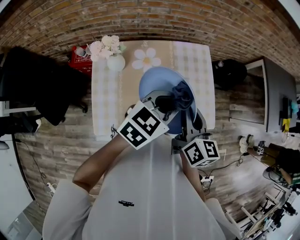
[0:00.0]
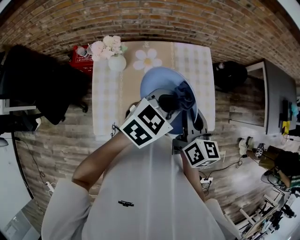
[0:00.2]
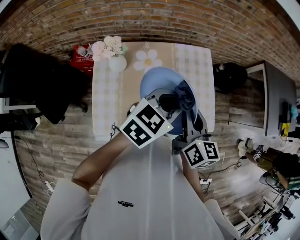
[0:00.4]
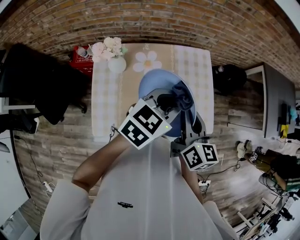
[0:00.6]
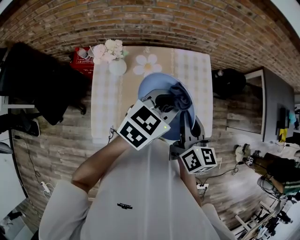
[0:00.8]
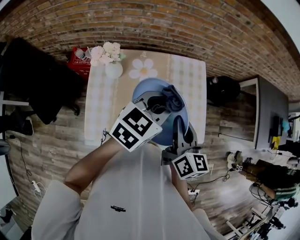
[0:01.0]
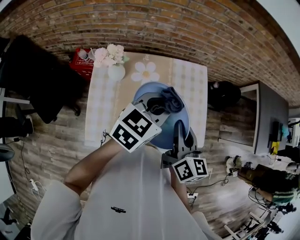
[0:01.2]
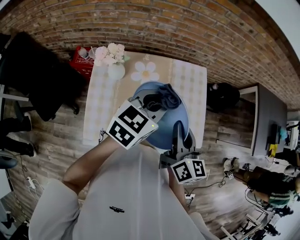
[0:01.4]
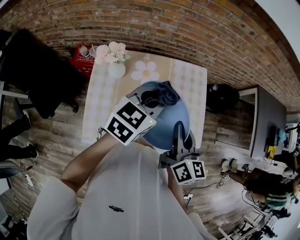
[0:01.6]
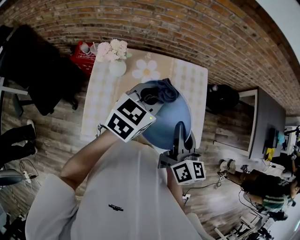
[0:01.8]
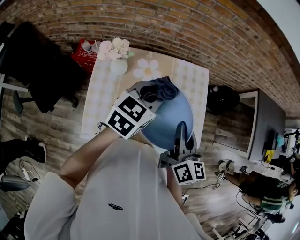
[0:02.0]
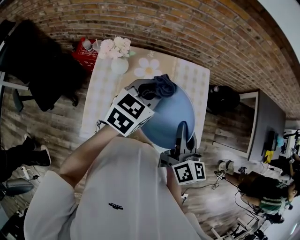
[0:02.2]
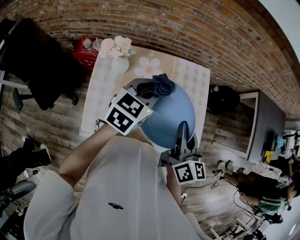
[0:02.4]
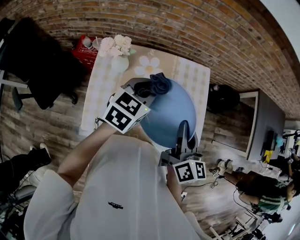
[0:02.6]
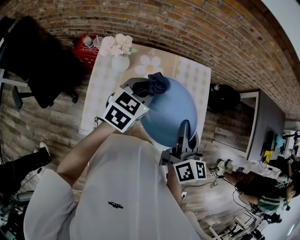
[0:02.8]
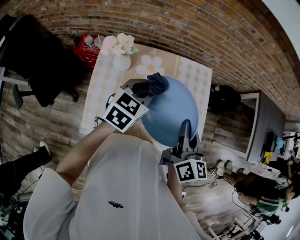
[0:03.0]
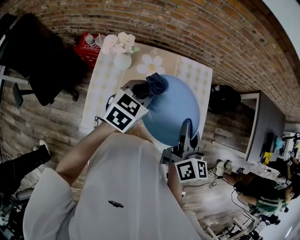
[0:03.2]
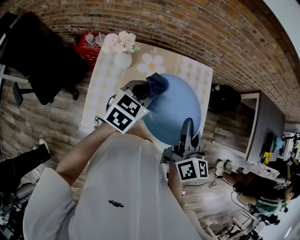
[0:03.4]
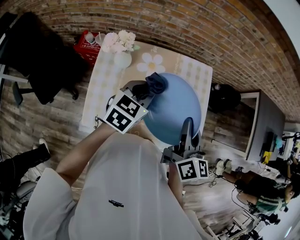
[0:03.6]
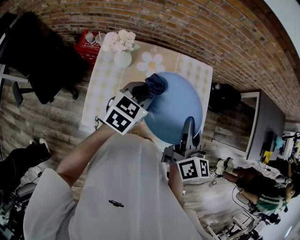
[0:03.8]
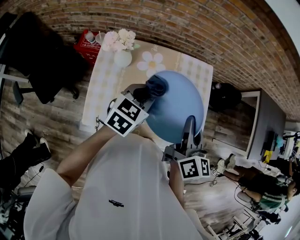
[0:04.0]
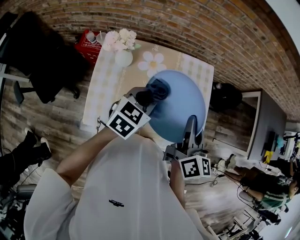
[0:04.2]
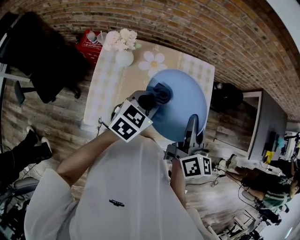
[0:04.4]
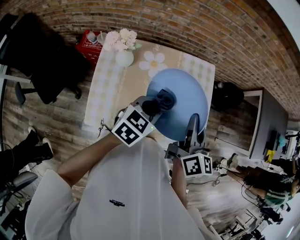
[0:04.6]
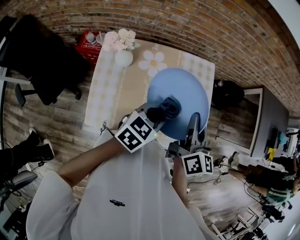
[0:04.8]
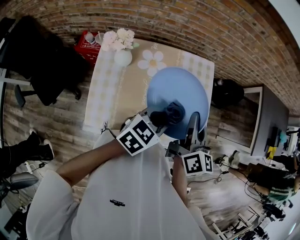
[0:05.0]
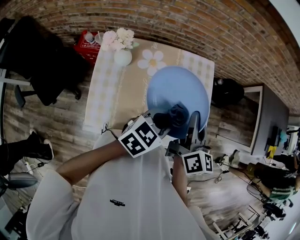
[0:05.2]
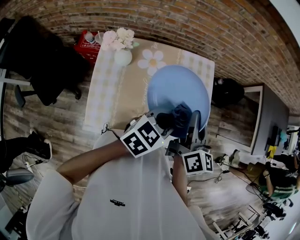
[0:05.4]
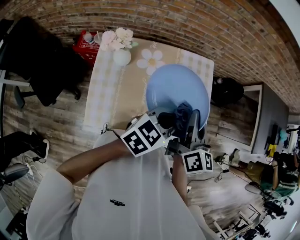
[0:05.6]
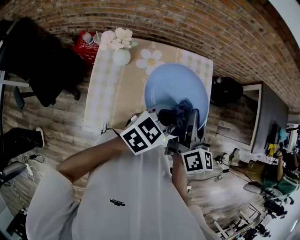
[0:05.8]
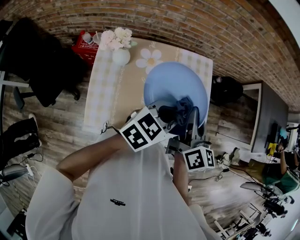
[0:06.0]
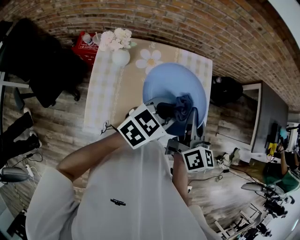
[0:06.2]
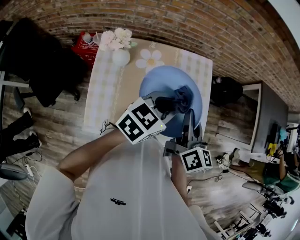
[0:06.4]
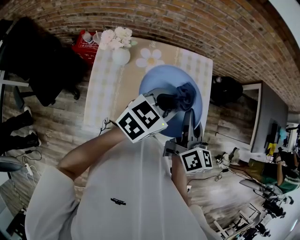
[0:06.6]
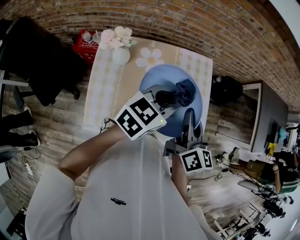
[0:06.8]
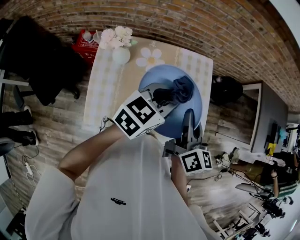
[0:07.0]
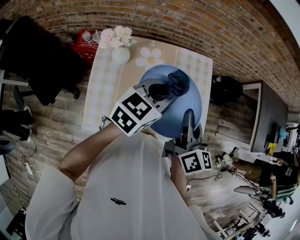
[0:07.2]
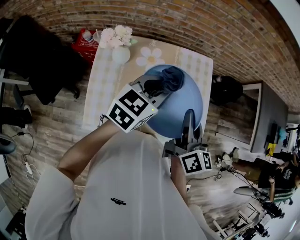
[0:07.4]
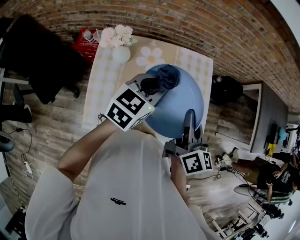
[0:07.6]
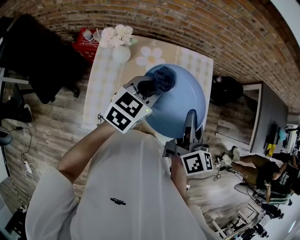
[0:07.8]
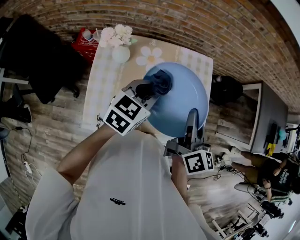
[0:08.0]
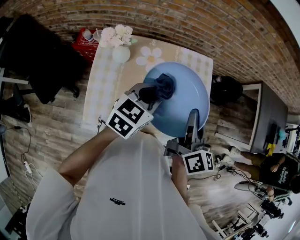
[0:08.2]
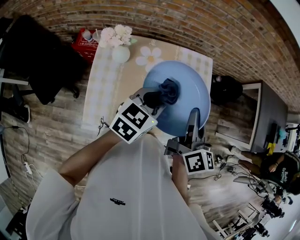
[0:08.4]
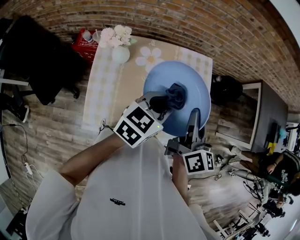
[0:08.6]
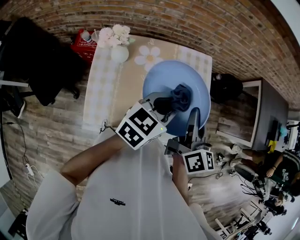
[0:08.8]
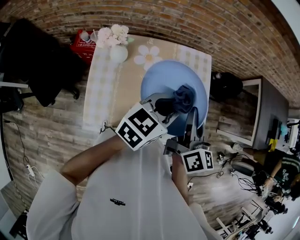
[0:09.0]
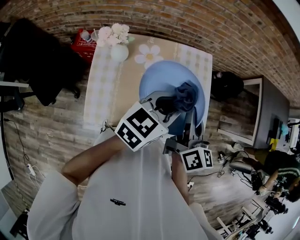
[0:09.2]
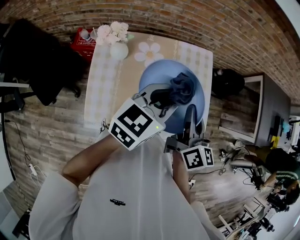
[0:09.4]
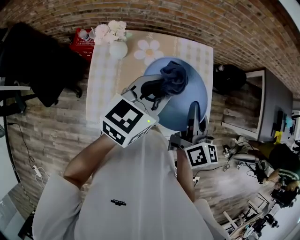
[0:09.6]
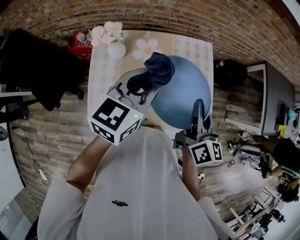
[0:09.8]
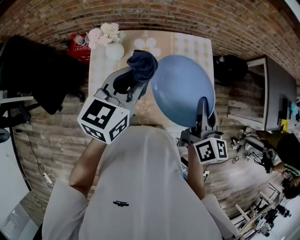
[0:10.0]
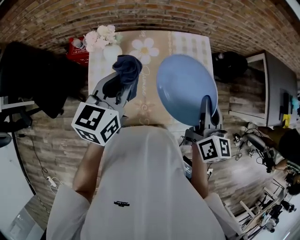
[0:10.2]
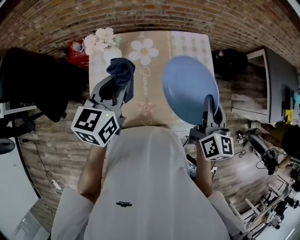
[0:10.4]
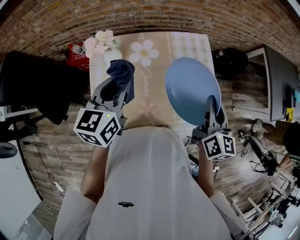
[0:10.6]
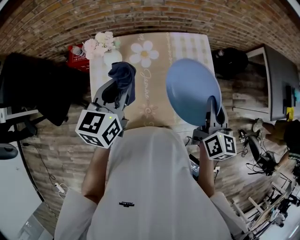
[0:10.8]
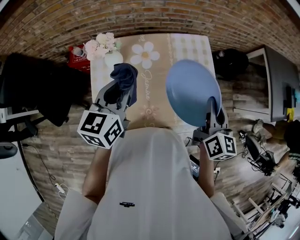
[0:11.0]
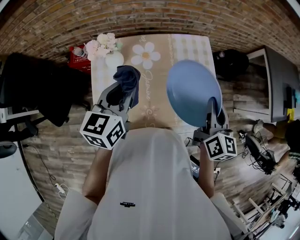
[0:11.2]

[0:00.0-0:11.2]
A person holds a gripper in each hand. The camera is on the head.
0:00.0 to 0:01.6: The left gripper heads to the left, covering approximately 5 cm.
0:01.6 to 0:03.2: The left gripper goes roughly 10 cm downward and to the left.
0:03.2 to 0:04.8: The left gripper is displaced to the right and backward by roughly 10 cm.
0:04.8 to 0:06.4: The left gripper is displaced upward by about 5 cm.
0:06.4 to 0:08.0: The left gripper shifts approximately 5 cm to the left.
0:08.0 to 0:09.6: The left gripper goes approximately 10 cm upward.
0:09.6 to 0:11.2: The left gripper goes some 10 cm to the left and downward, while the right gripper shifts some 5 cm to the right.

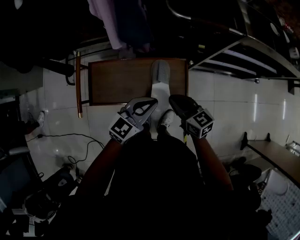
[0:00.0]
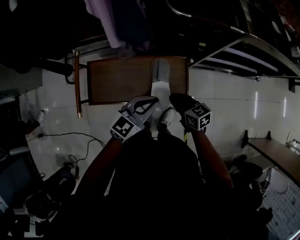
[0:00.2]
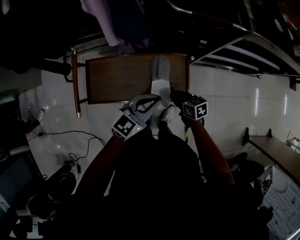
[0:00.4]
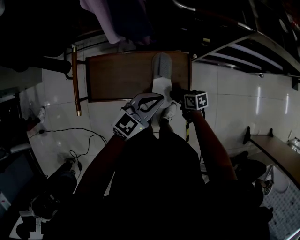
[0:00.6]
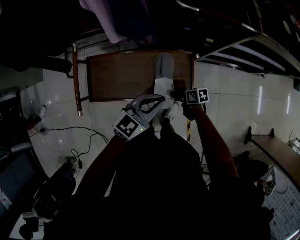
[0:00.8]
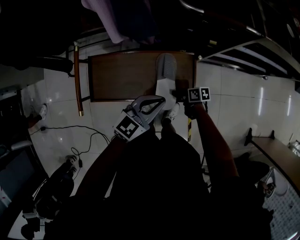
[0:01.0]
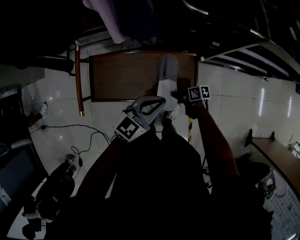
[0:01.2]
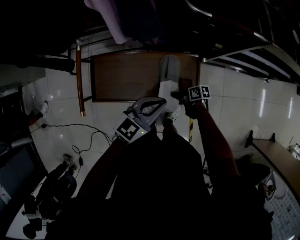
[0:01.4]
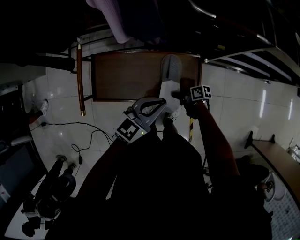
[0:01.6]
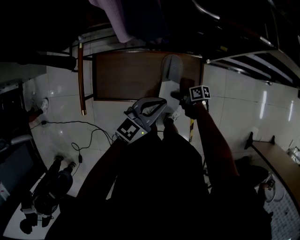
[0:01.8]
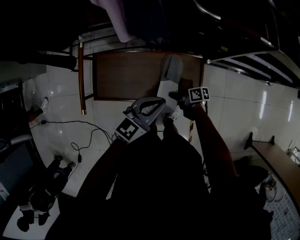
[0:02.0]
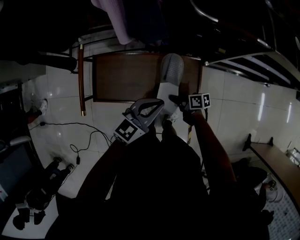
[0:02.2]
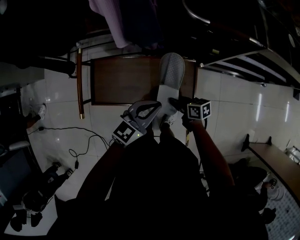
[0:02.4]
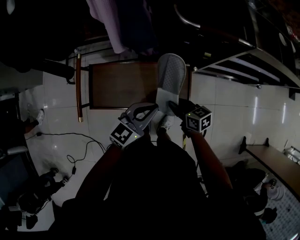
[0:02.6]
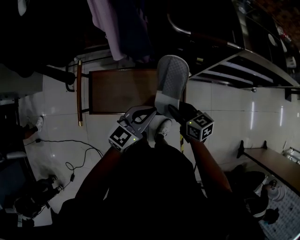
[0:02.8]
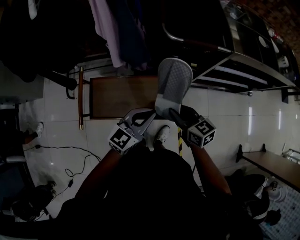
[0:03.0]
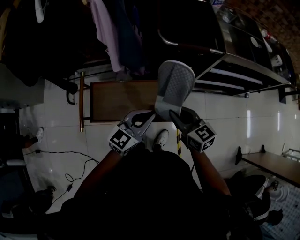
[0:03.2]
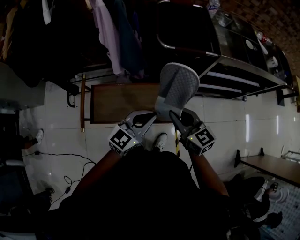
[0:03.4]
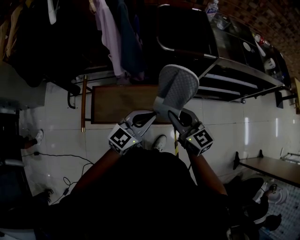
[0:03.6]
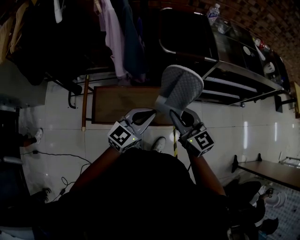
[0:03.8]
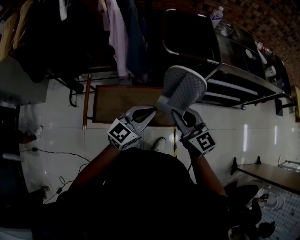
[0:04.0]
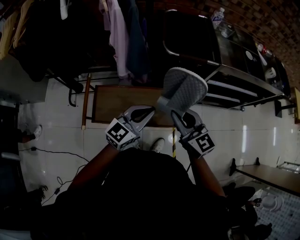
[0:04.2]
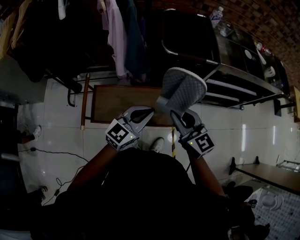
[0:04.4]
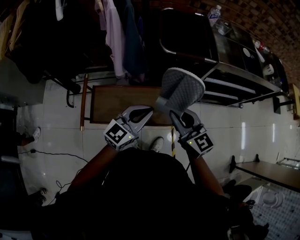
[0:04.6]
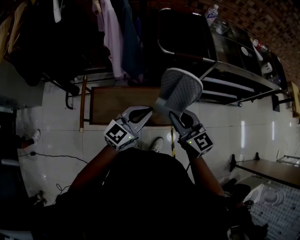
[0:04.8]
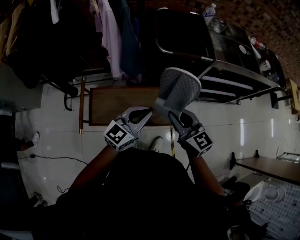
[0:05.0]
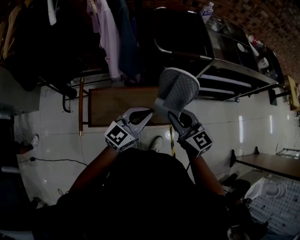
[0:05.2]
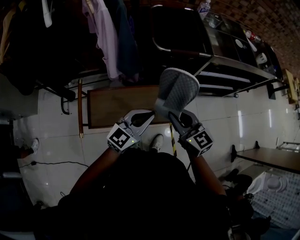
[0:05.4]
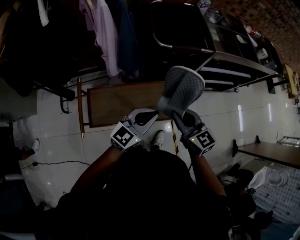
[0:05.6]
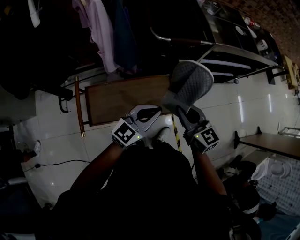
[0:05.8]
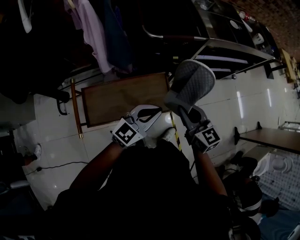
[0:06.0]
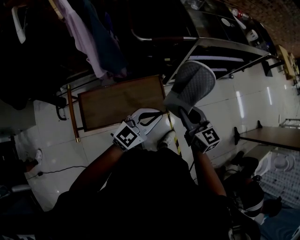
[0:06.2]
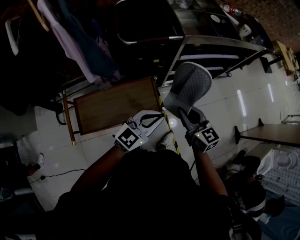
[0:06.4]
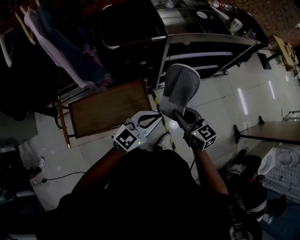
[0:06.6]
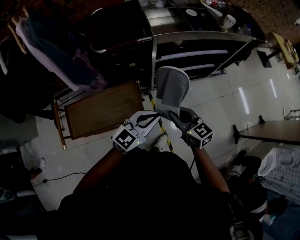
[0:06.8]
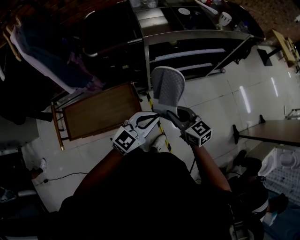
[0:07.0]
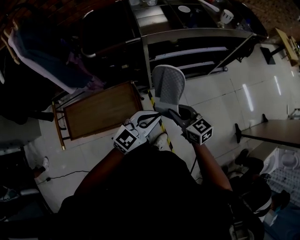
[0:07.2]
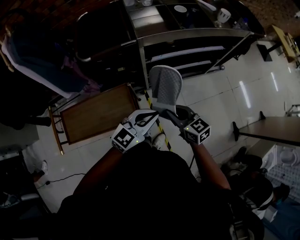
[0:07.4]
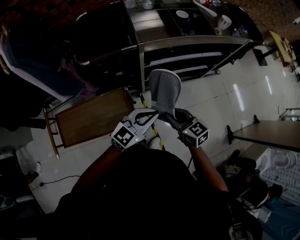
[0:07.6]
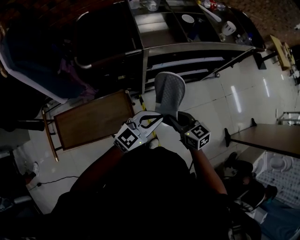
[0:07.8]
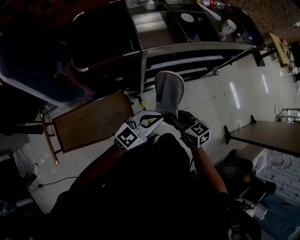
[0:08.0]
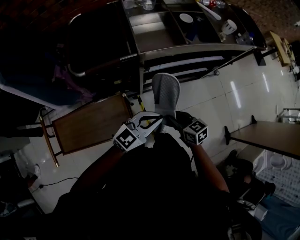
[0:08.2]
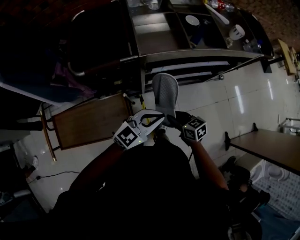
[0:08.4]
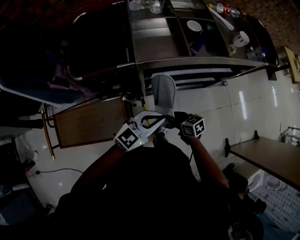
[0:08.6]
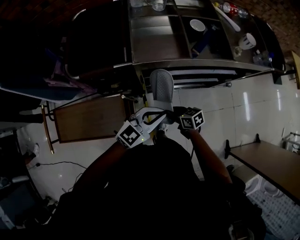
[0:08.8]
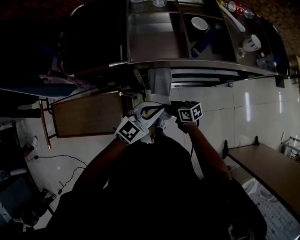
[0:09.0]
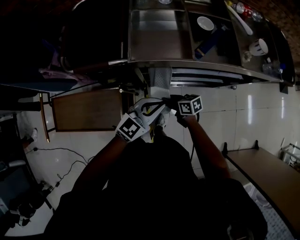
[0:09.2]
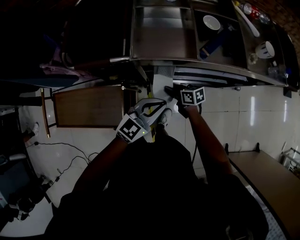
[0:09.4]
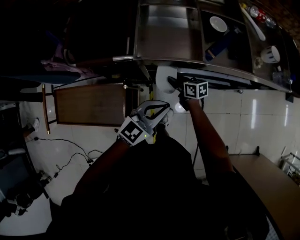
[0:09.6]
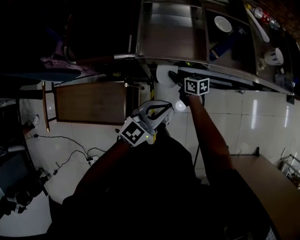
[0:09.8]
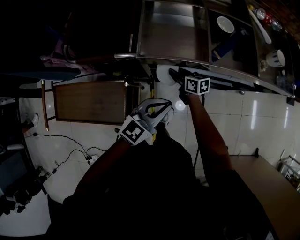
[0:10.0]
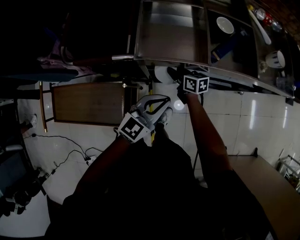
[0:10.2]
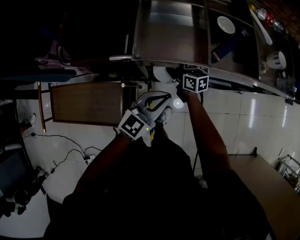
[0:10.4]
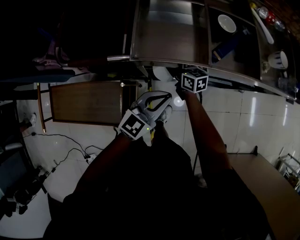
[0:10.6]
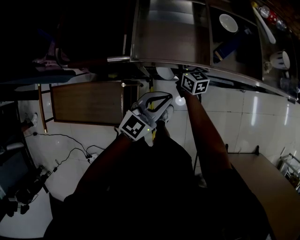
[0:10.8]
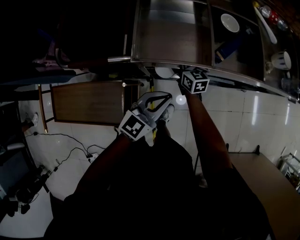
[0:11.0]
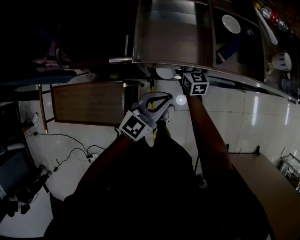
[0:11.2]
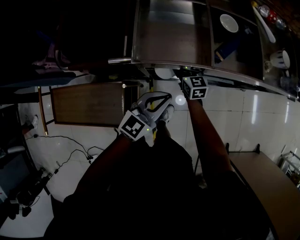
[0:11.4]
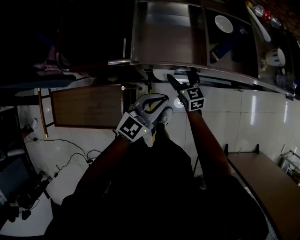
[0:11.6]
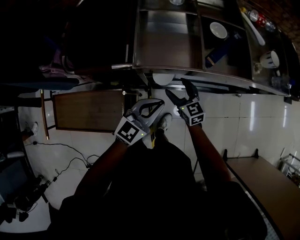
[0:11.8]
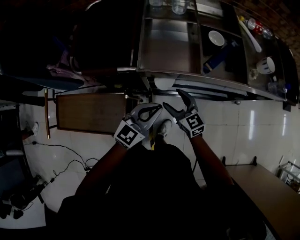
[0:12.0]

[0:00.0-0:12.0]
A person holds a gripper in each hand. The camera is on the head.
0:00.0 to 0:01.6: The right gripper goes about 25 cm downward, rotates around the line of its fingers by approximately 50 degrees, clockwise from behind, and opens up.
0:01.6 to 0:03.0: The right gripper heads upward, covering approximately 30 cm, and twists some 50 degrees counterclockwise, seen from behind. The left gripper travels upward by about 10 cm.
0:03.0 to 0:04.4: The left gripper shifts some 10 cm upward; the right gripper moves upward, about 15 cm, and swivels about 30 degrees.
0:04.4 to 0:06.0: The left gripper shifts by approximately 5 cm; the right gripper goes about 5 cm downward.
0:06.0 to 0:07.6: The grippers both shift to the right by roughly 25 cm.
0:07.6 to 0:09.0: The right gripper travels downward and forward by some 25 cm, and turns by roughly 30 degrees. Meanwhile the left gripper heads forward and to the right, covering approximately 20 cm.
0:09.0 to 0:10.4: The right gripper goes approximately 20 cm forward; the left gripper is displaced forward by about 5 cm.
0:10.4 to 0:12.0: The right gripper is displaced upward and backward by roughly 15 cm, changes its angle by roughly 30 degrees, and opens.

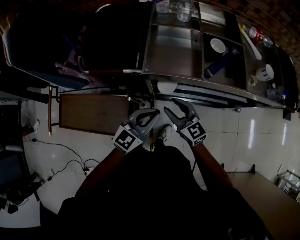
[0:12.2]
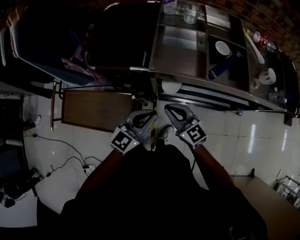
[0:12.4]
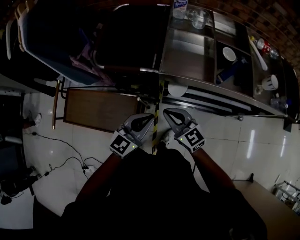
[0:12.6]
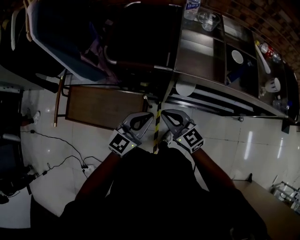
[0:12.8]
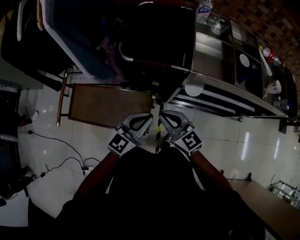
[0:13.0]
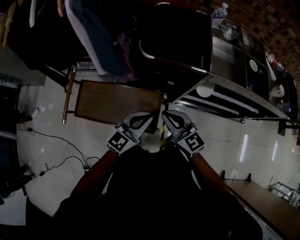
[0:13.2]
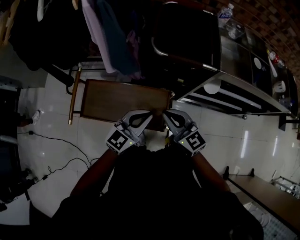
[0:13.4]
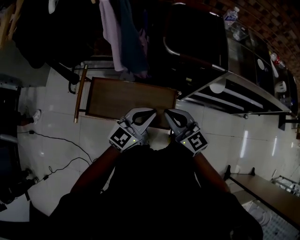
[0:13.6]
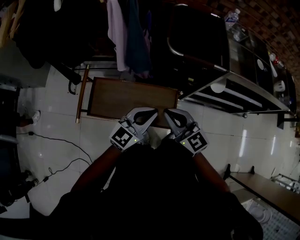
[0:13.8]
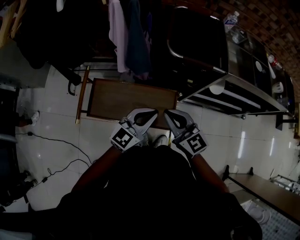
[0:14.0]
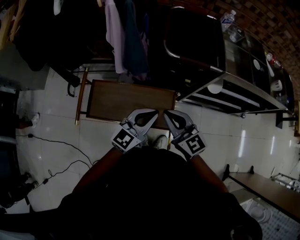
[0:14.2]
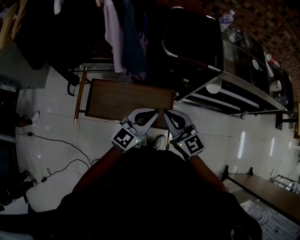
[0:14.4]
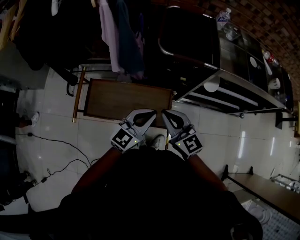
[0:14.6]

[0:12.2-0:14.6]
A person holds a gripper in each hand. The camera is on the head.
0:12.2 to 0:13.4: The two grippers go approximately 35 cm to the left. The right gripper closes.
0:13.4 to 0:14.6: The right gripper shifts by roughly 5 cm.
